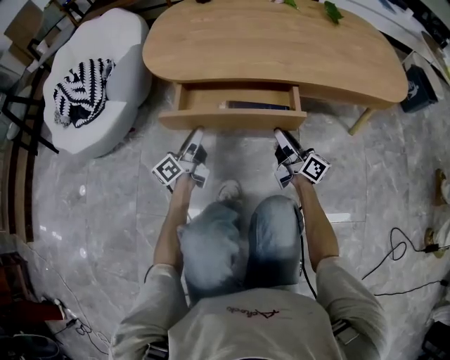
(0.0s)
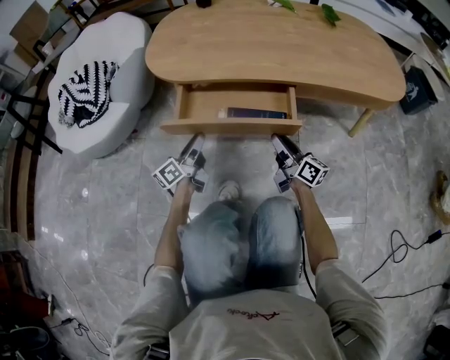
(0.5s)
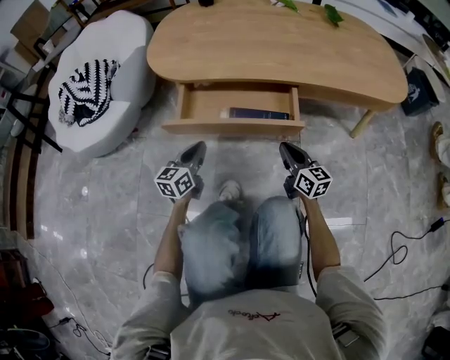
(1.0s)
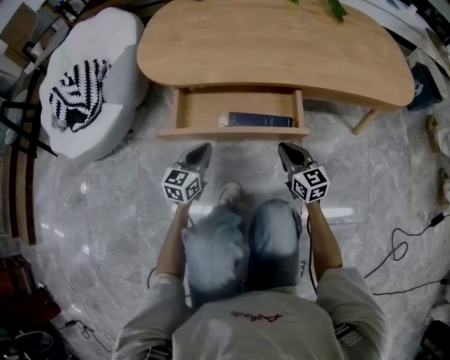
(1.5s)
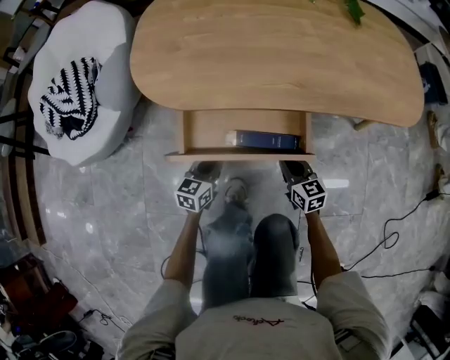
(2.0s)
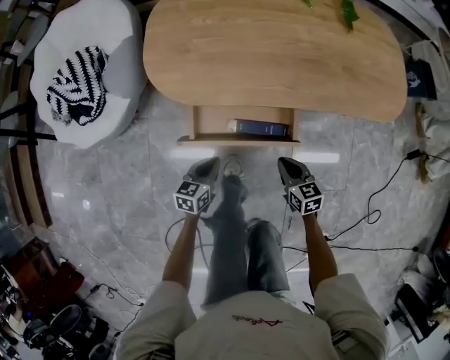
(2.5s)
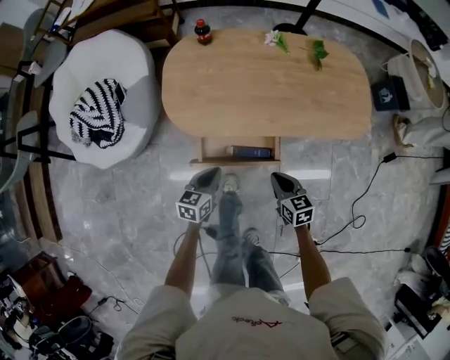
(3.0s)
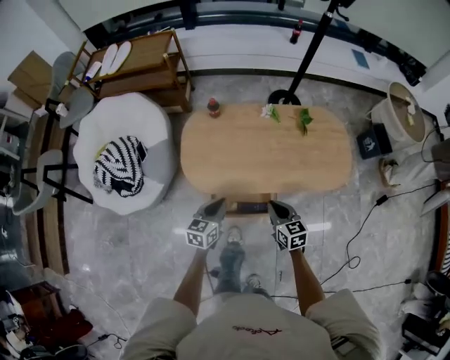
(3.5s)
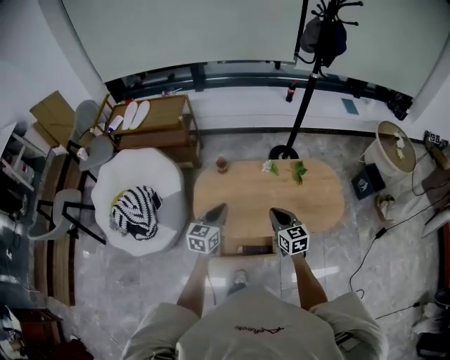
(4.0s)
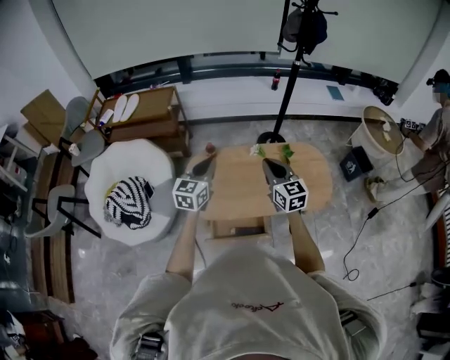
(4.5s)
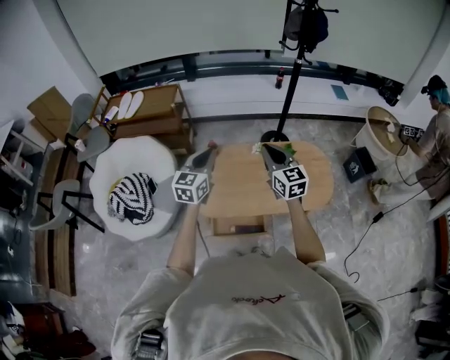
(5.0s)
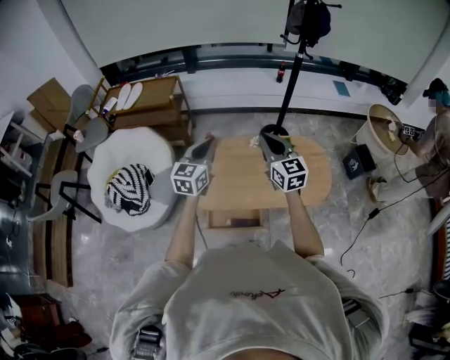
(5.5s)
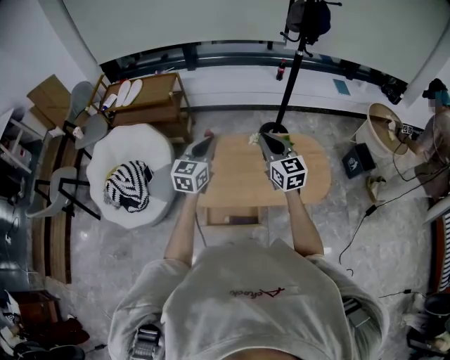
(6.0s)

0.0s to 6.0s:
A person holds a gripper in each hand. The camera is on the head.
0.0s to 2.0s: The right gripper changes place by roughly 5 cm, tips its fingers downward by about 40 degrees, and closes up, while the left gripper shifts by roughly 5 cm, points its fingers approximately 30 degrees further downward, and closes.
2.0s to 4.0s: The grippers both shift upward by about 70 cm.
4.0s to 6.0s: The two grippers go about 15 cm upward.

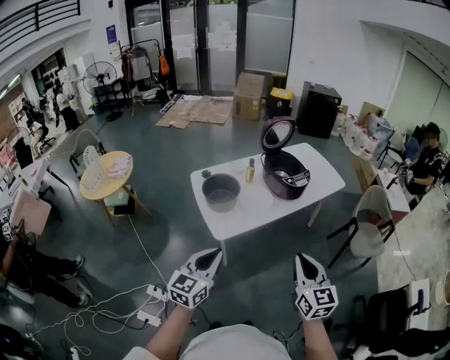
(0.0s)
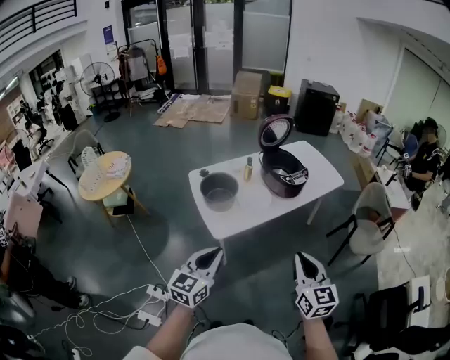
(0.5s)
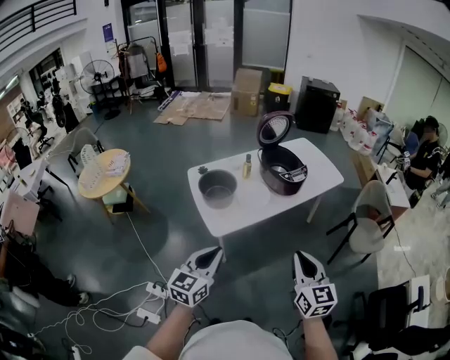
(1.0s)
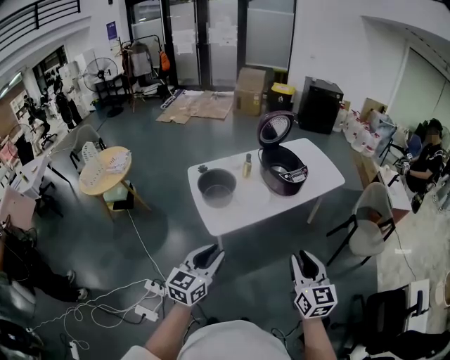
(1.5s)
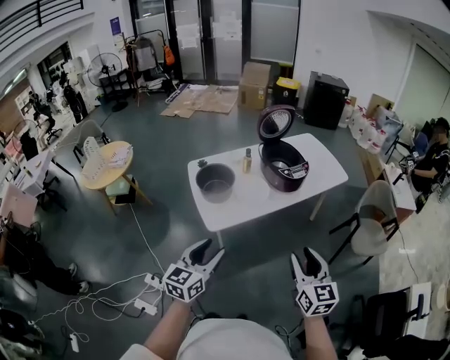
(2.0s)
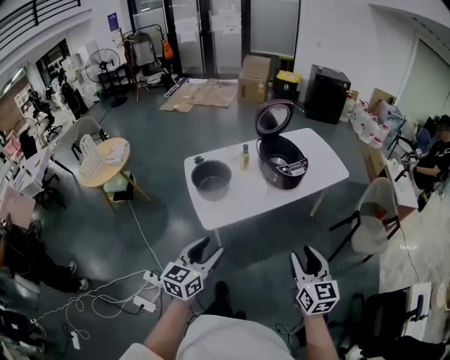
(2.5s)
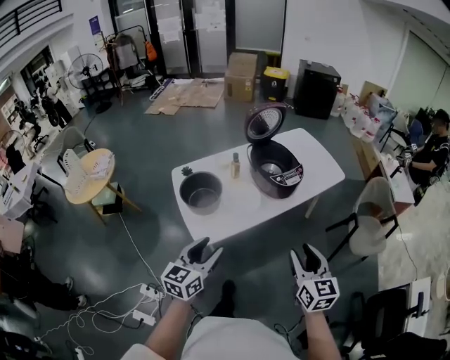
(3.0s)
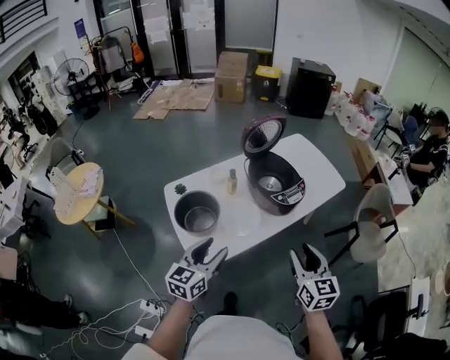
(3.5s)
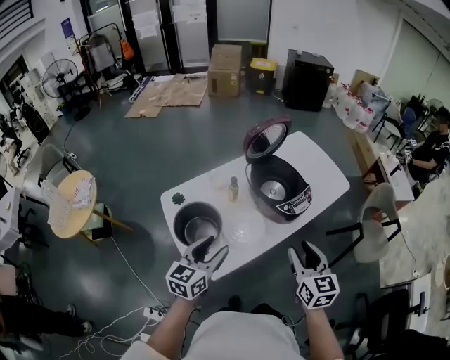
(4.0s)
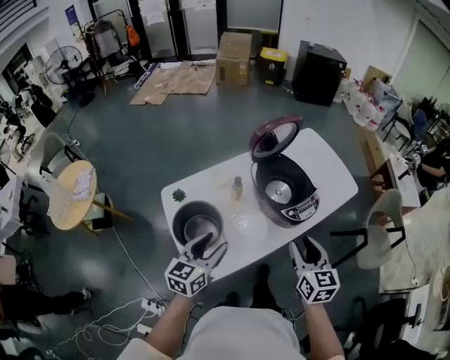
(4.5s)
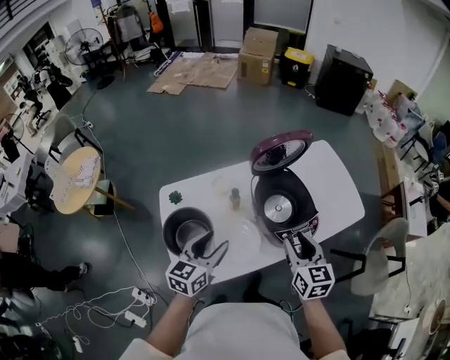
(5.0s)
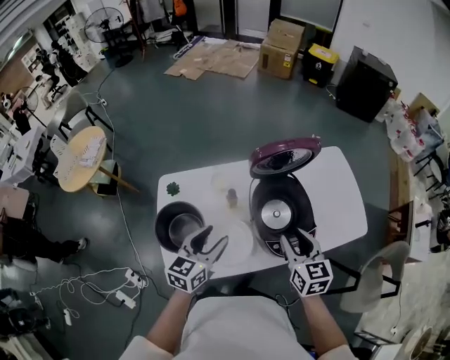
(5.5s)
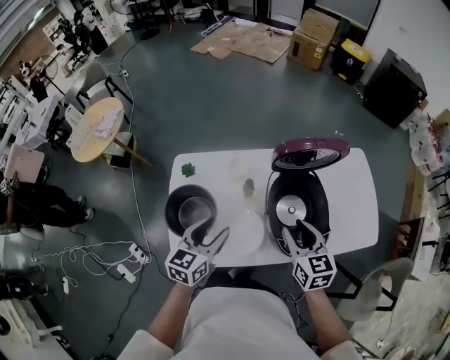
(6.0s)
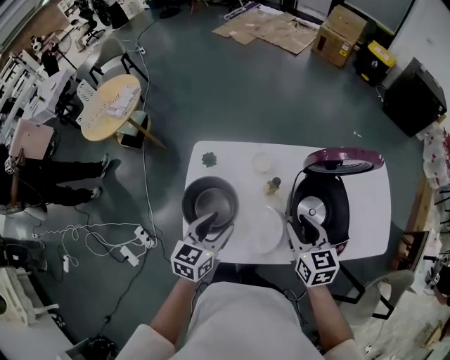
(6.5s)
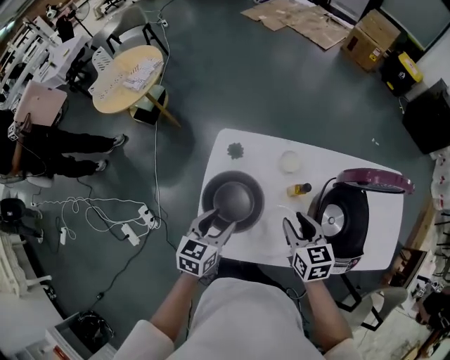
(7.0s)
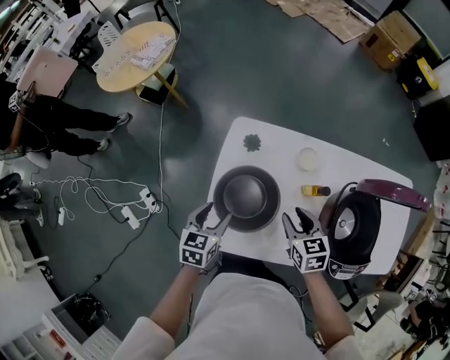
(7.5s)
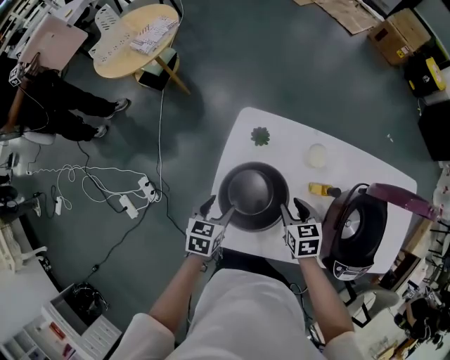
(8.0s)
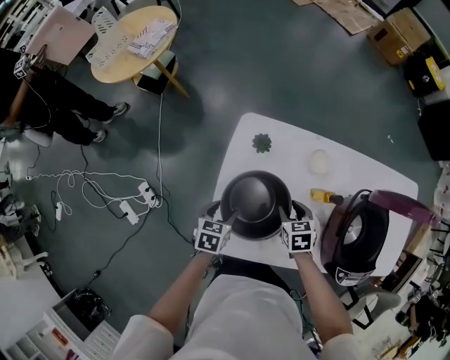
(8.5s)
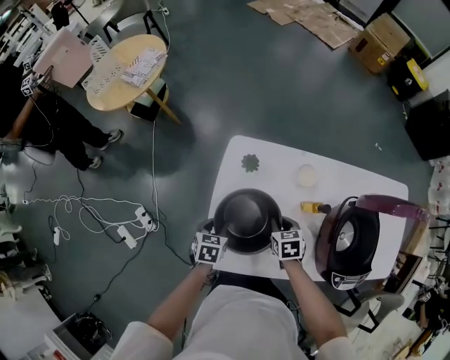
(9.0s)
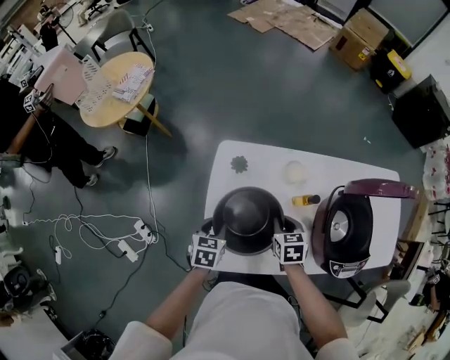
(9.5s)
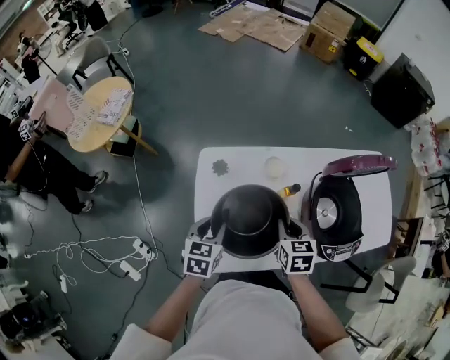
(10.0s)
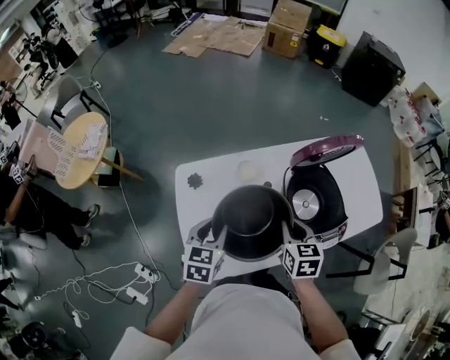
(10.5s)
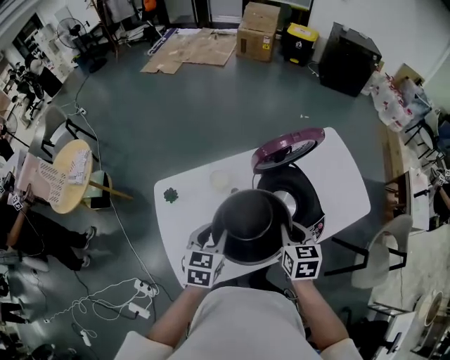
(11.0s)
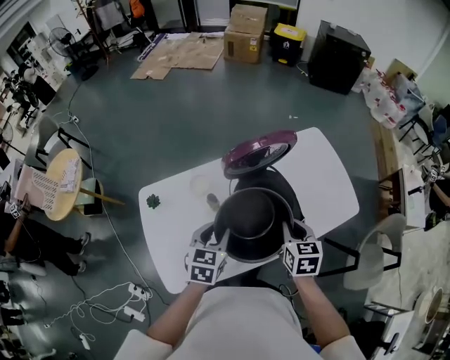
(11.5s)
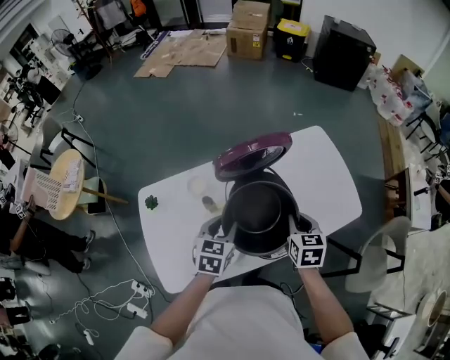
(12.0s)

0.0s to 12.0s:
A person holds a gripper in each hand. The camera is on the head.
0.0s to 2.0s: The left gripper ends up about 5 cm from where it was, and opens its fingers, while the right gripper shifts roughly 5 cm to the right, and opens up.
2.0s to 4.0s: The grippers both shift forward by roughly 35 cm.
4.0s to 6.0s: The right gripper shifts by some 30 cm, and rotates approximately 30 degrees; the left gripper changes place by roughly 20 cm, and changes its angle by roughly 30 degrees.
6.0s to 8.0s: The right gripper heads to the left, downward and forward, covering roughly 35 cm, and changes its angle by some 30 degrees; the left gripper travels to the left and downward by roughly 35 cm, and swivels roughly 30 degrees.
8.0s to 10.0s: The grippers both shift upward and to the right by some 15 cm. The left gripper closes, while the right gripper swivels approximately 30 degrees, and closes up.
10.0s to 12.0s: Both grippers travel together to the right, approximately 35 cm.

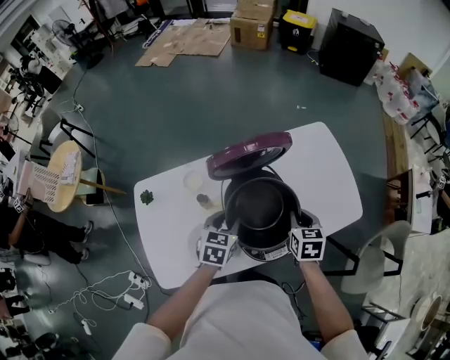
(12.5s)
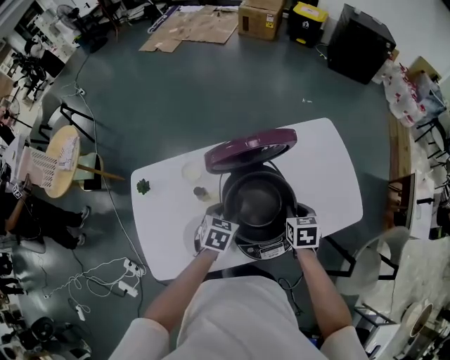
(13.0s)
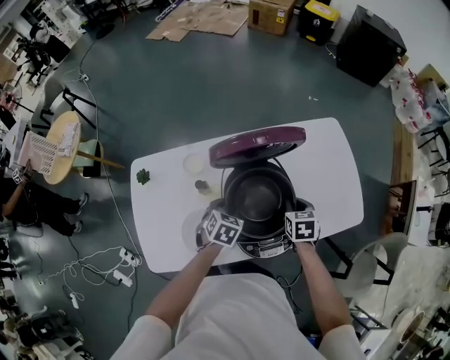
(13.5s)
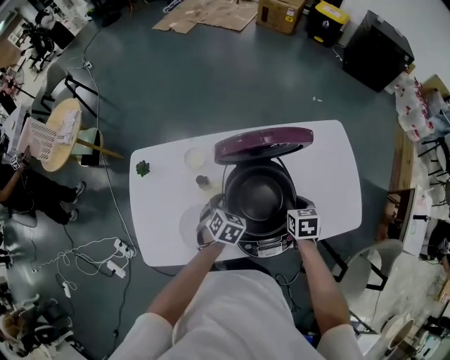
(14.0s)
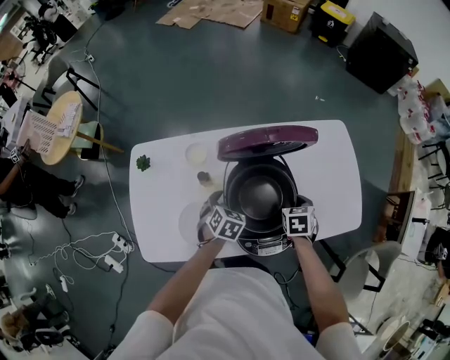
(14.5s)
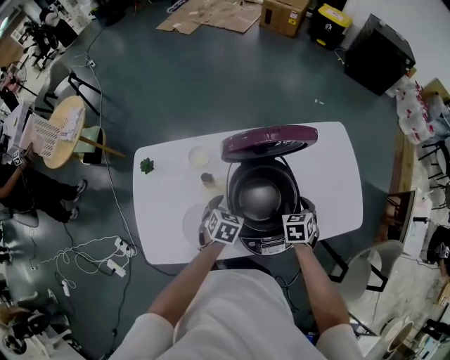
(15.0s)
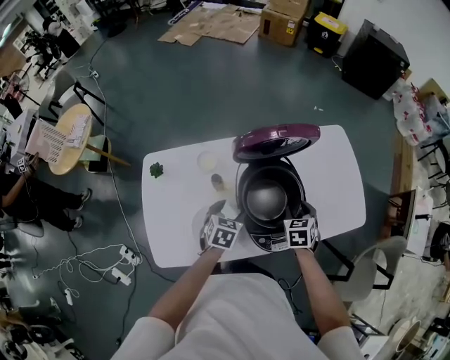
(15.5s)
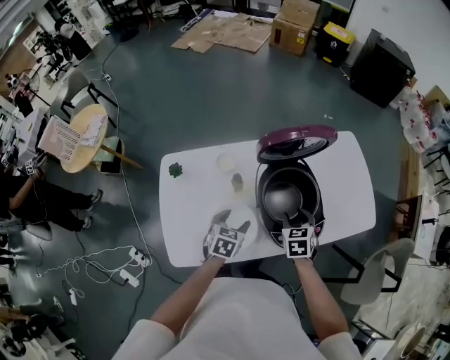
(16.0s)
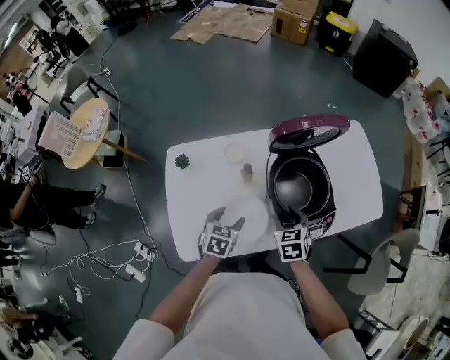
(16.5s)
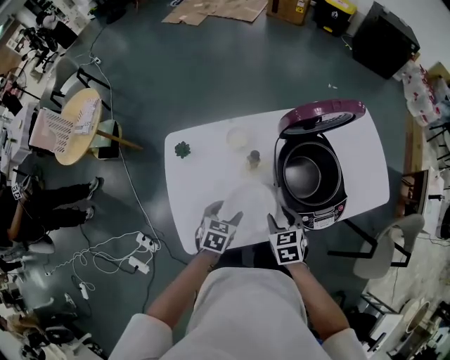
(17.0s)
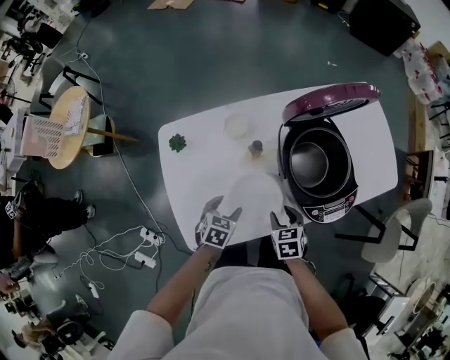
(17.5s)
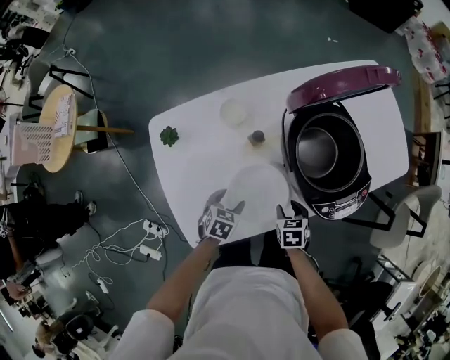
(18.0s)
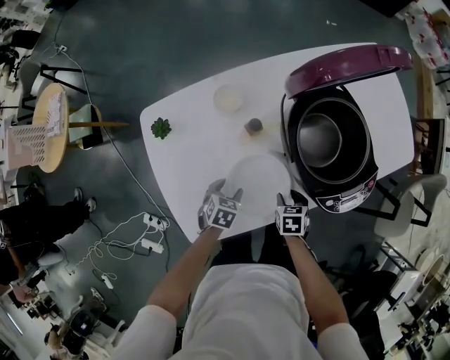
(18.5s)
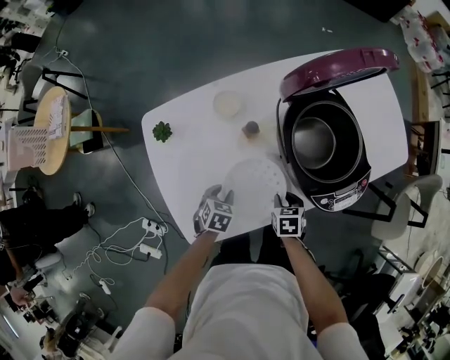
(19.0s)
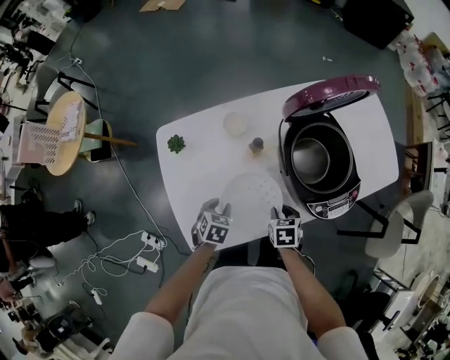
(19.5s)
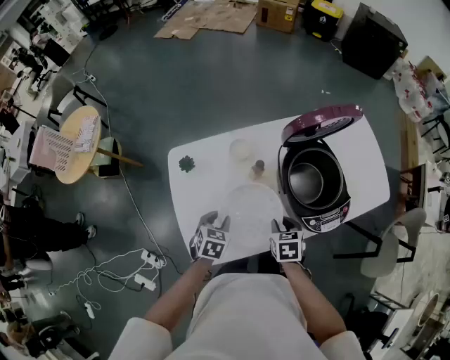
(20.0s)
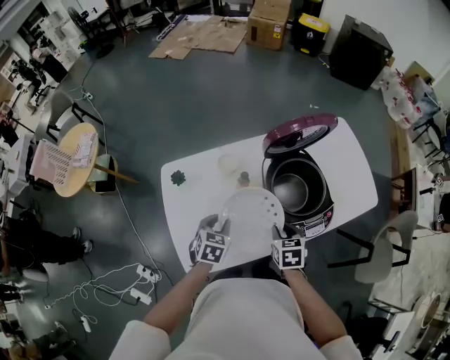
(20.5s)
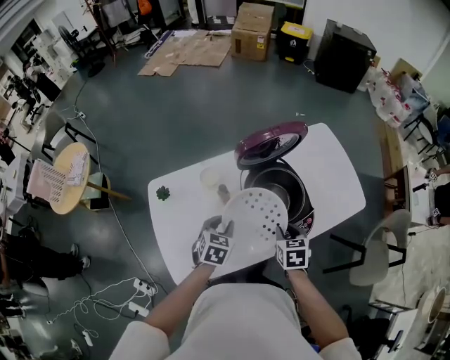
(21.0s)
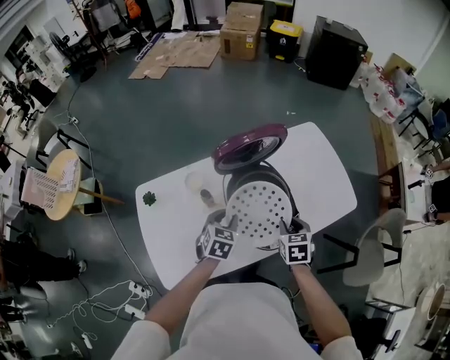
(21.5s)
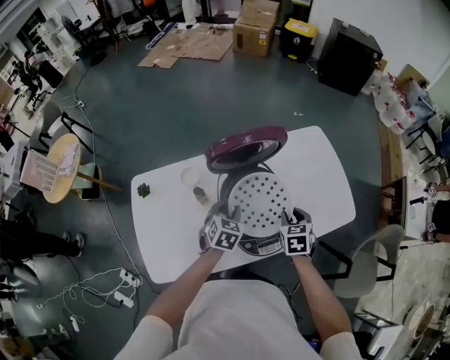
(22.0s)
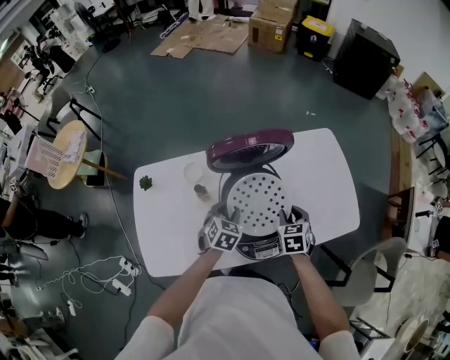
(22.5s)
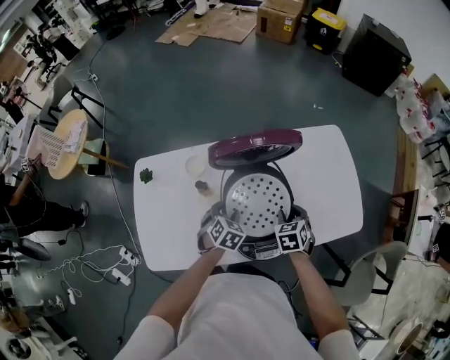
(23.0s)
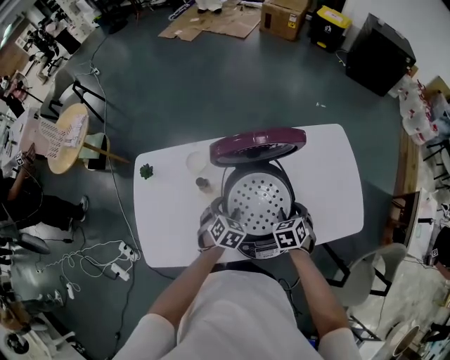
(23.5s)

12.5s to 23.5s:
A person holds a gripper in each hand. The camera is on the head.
12.5s to 14.5s: Both grippers travel together downward, some 10 cm. The right gripper rotates approximately 20 degrees. Meanwhile the left gripper turns by approximately 20 degrees, and opens up.
14.5s to 16.0s: The grippers both shift backward, to the left and upward by approximately 15 cm. The right gripper opens.
16.0s to 18.0s: The left gripper moves downward and to the left, roughly 20 cm; the right gripper moves downward, backward and to the left, about 25 cm, and swivels approximately 20 degrees.
18.0s to 20.0s: Both grippers travel together upward, roughly 15 cm. The left gripper closes its fingers.
20.0s to 21.5s: The left gripper moves to the right, forward and upward, some 25 cm. Meanwhile the right gripper travels to the right by roughly 20 cm.
21.5s to 23.5s: The right gripper travels forward and downward by roughly 15 cm, and rotates some 30 degrees. The left gripper is displaced downward by about 10 cm, and opens.
